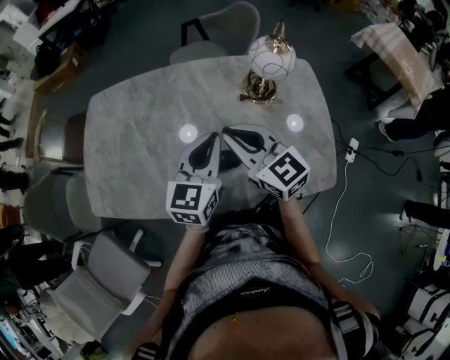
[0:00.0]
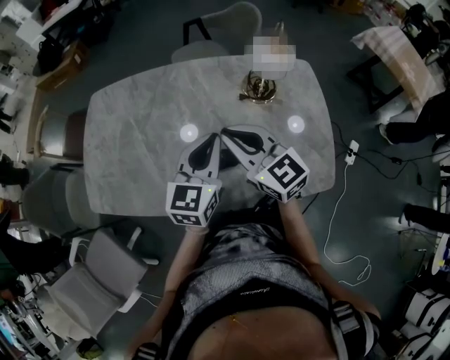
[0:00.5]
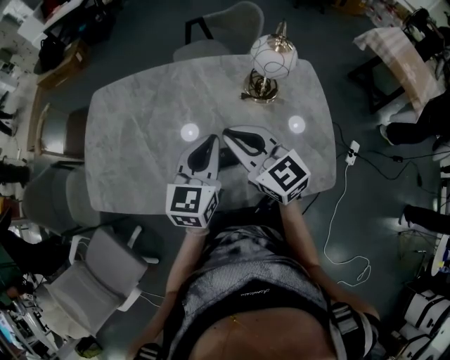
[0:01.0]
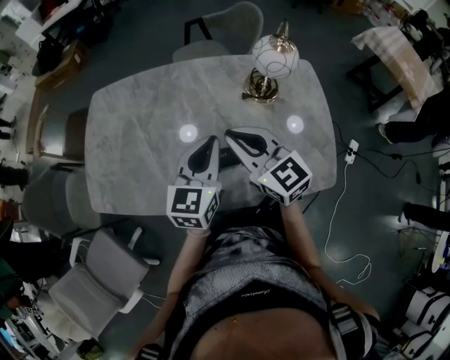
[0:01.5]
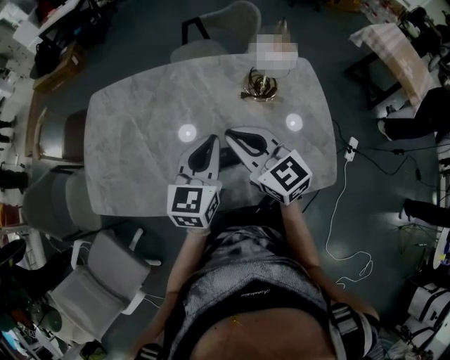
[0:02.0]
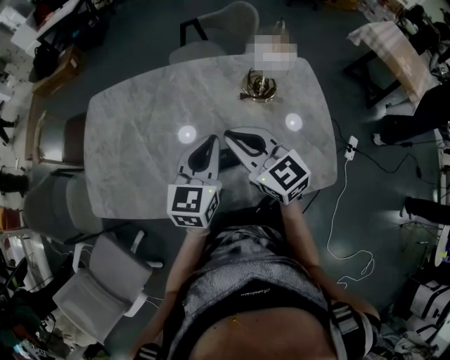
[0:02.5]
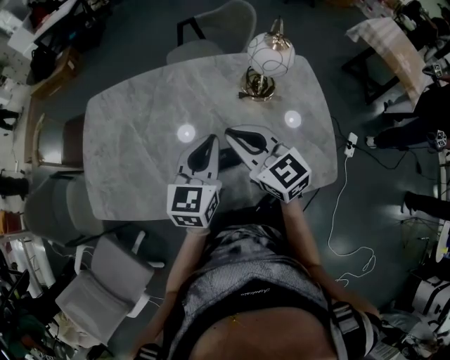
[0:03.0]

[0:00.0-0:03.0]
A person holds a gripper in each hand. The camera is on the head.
0:00.0 to 0:03.0: The grippers stay close to where they were, moving slightly.

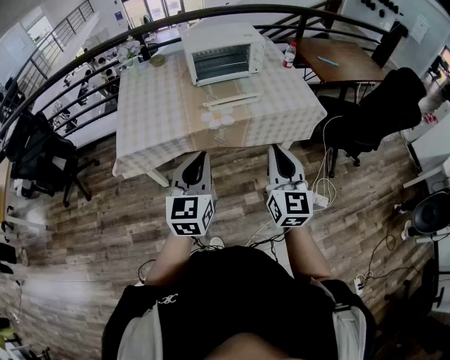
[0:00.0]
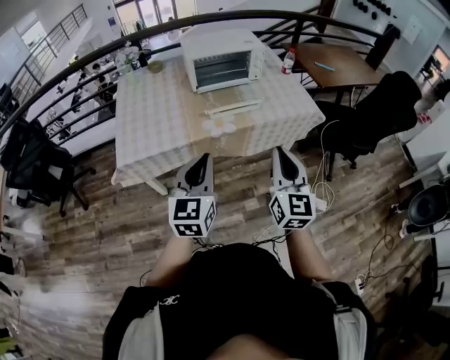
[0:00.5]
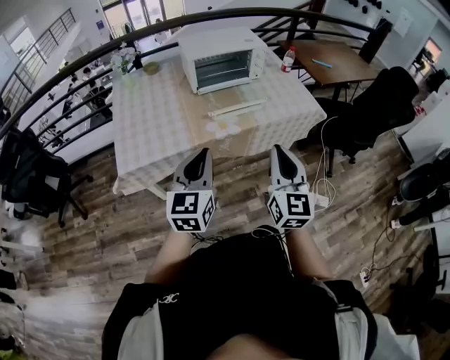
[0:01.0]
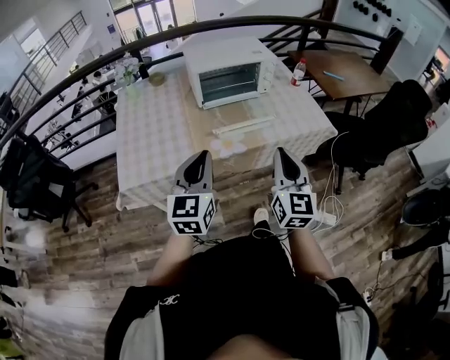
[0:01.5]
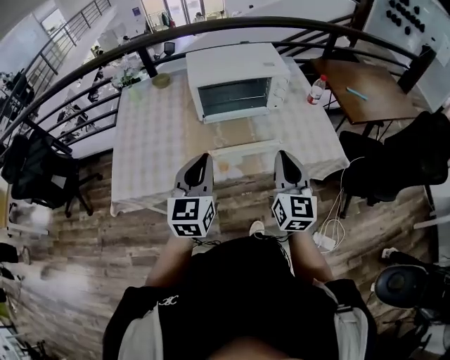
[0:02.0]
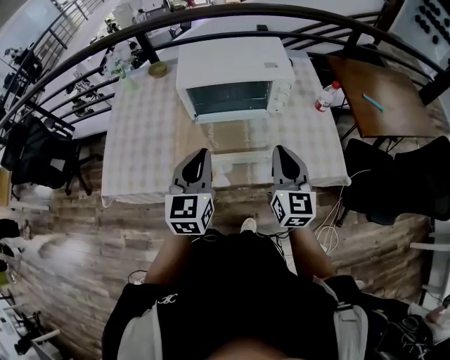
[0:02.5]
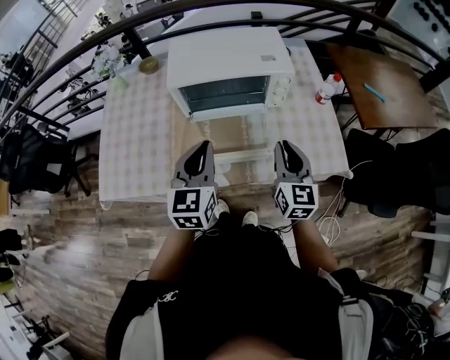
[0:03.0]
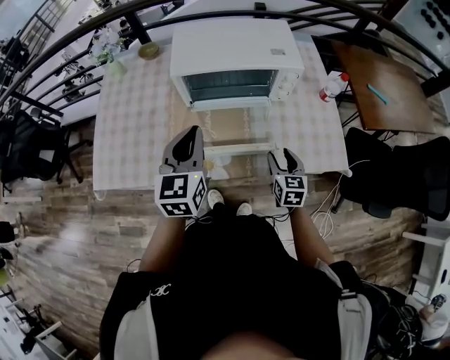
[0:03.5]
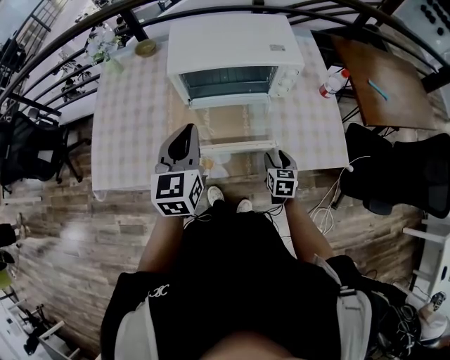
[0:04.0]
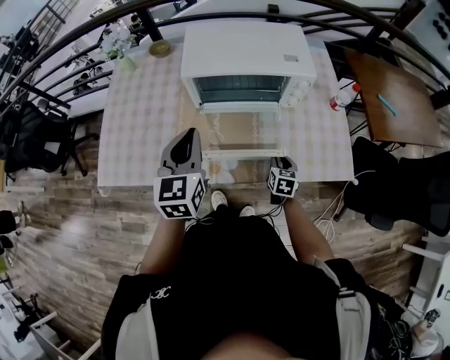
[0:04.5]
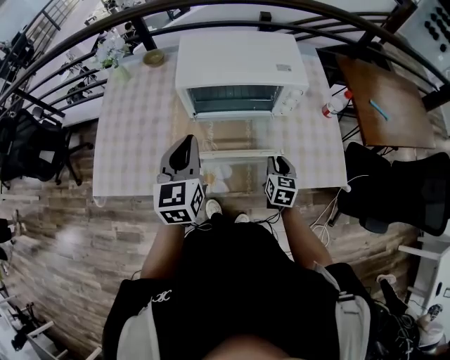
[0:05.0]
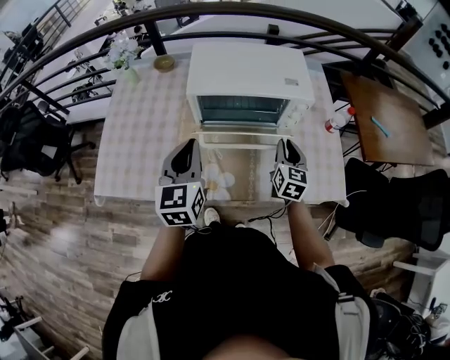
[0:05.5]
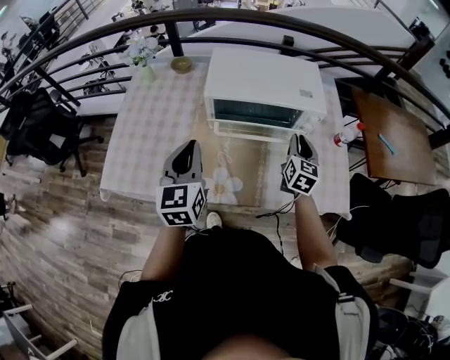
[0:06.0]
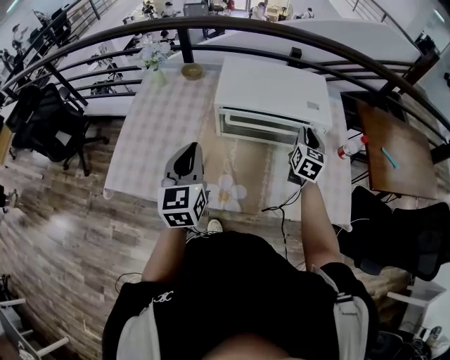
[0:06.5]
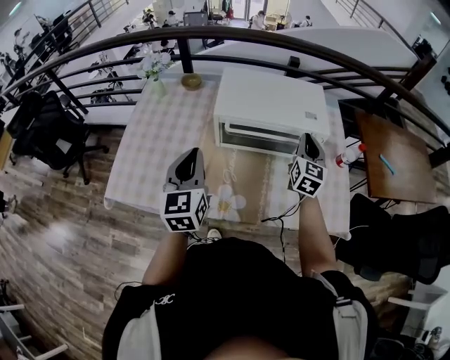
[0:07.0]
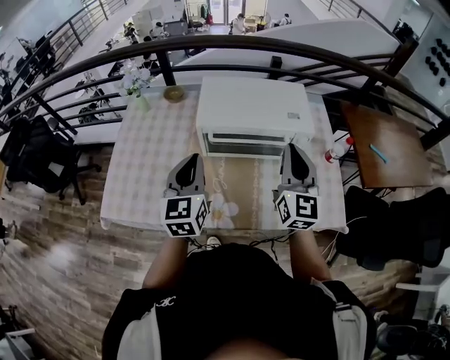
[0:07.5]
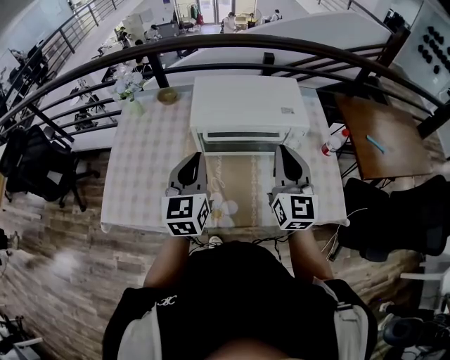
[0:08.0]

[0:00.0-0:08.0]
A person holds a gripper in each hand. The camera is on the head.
0:00.0 to 0:02.0: The grippers both shift forward by about 30 cm.
0:02.0 to 0:04.0: The right gripper heads downward and forward, covering roughly 35 cm, angles its fingers downward, by some 40 degrees, and opens; the left gripper shifts roughly 15 cm forward.
0:04.0 to 0:06.0: The left gripper is displaced to the left by some 5 cm; the right gripper goes some 25 cm upward and forward, changes its angle by roughly 20 degrees, and closes its fingers.
0:06.0 to 0:08.0: The right gripper travels upward and backward by about 20 cm, and swivels roughly 30 degrees. Meanwhile the left gripper moves approximately 5 cm.

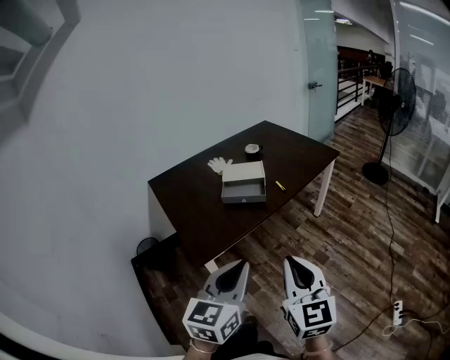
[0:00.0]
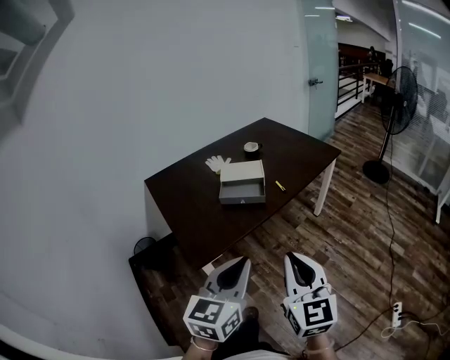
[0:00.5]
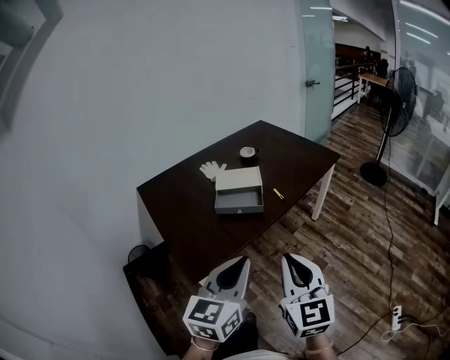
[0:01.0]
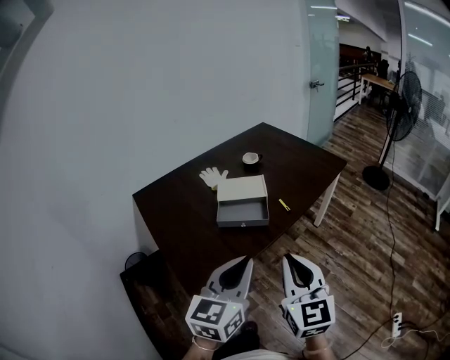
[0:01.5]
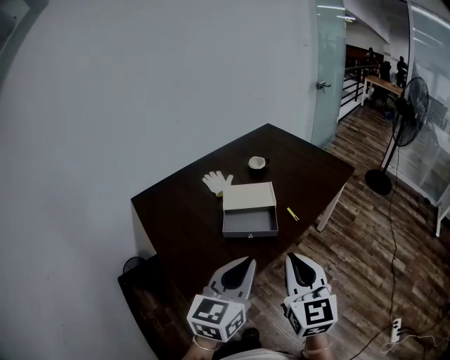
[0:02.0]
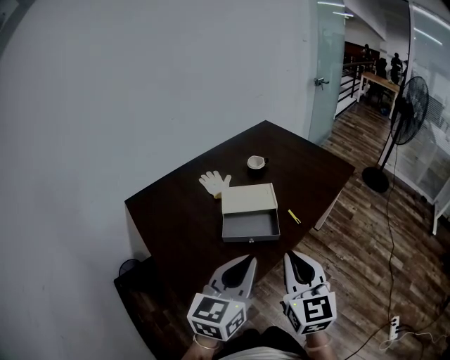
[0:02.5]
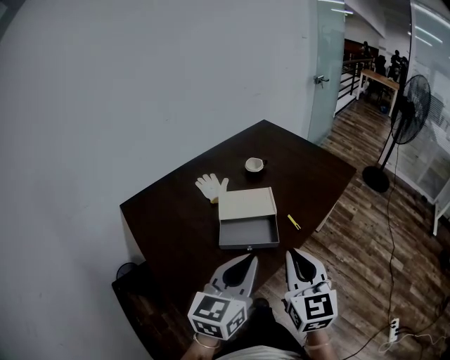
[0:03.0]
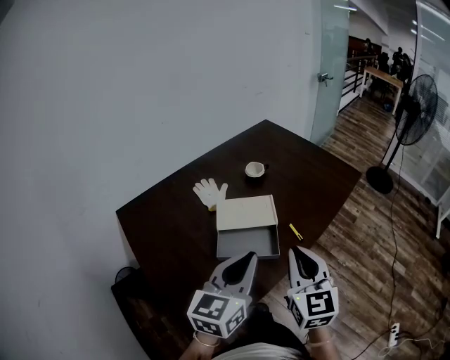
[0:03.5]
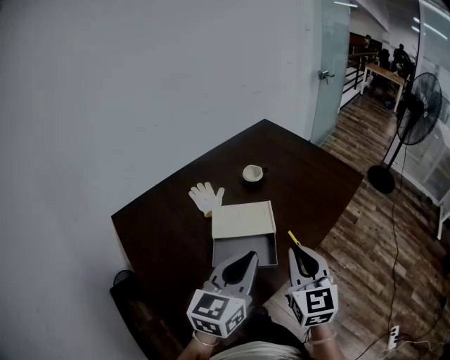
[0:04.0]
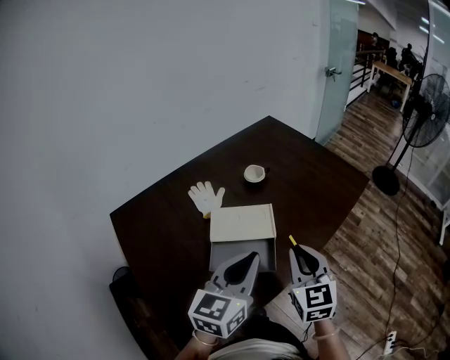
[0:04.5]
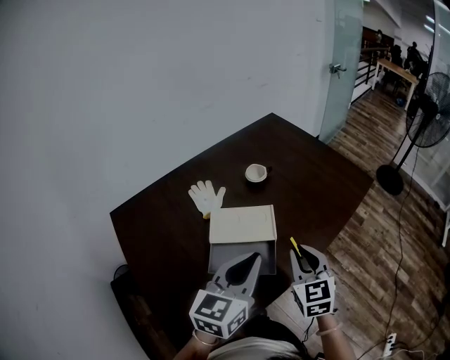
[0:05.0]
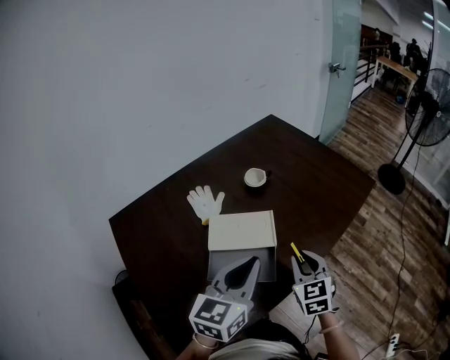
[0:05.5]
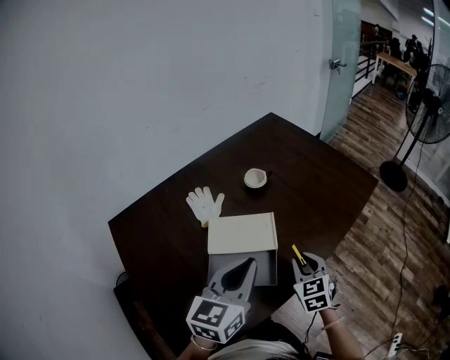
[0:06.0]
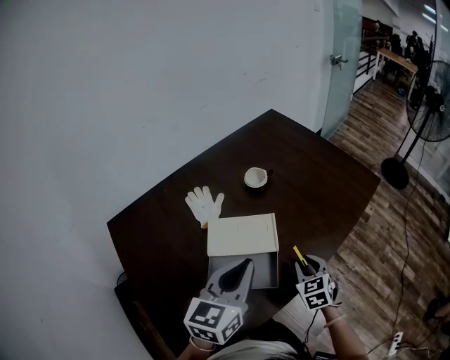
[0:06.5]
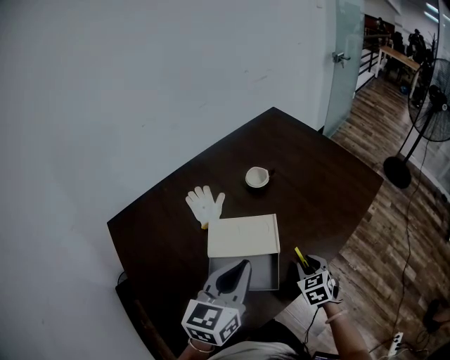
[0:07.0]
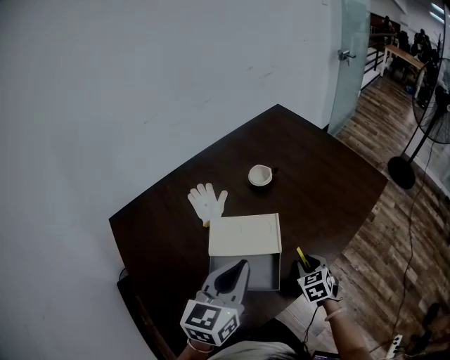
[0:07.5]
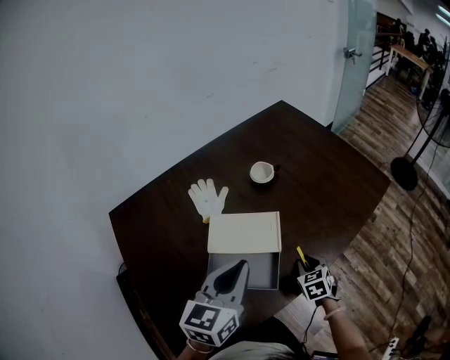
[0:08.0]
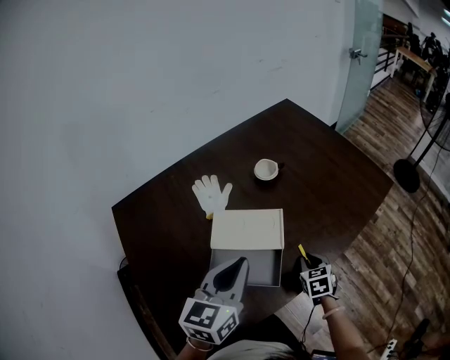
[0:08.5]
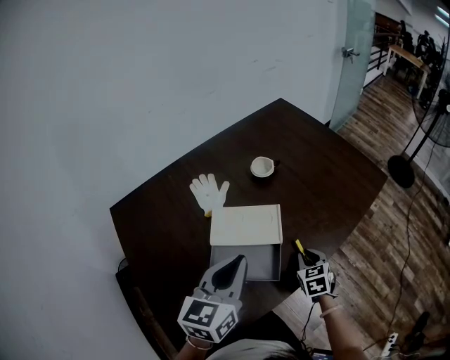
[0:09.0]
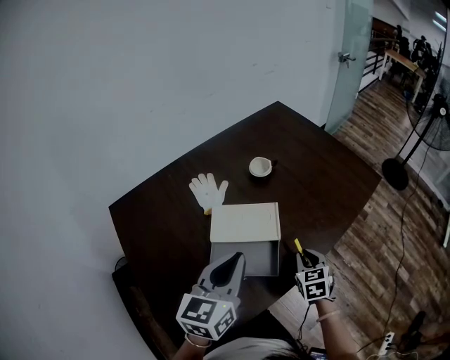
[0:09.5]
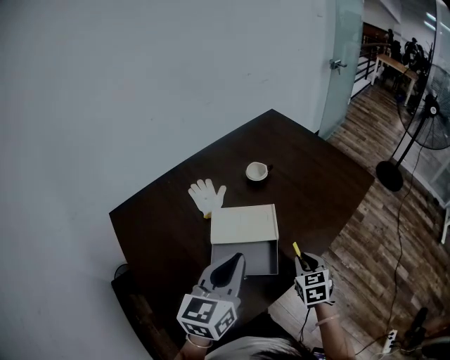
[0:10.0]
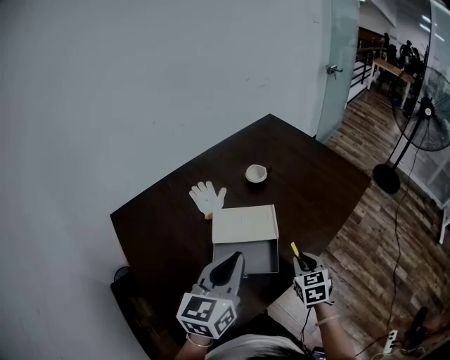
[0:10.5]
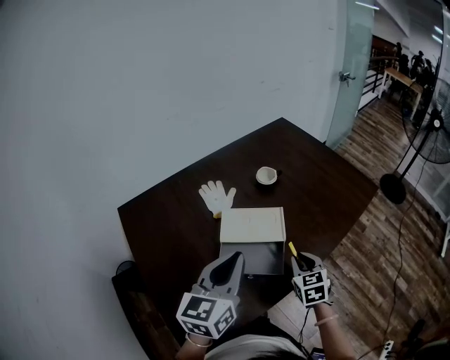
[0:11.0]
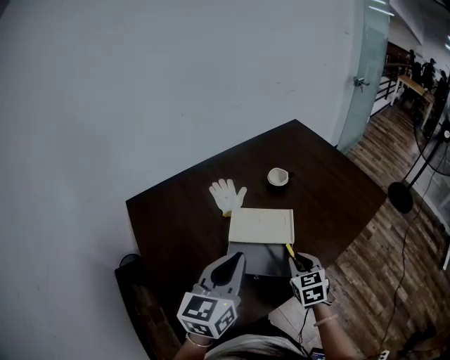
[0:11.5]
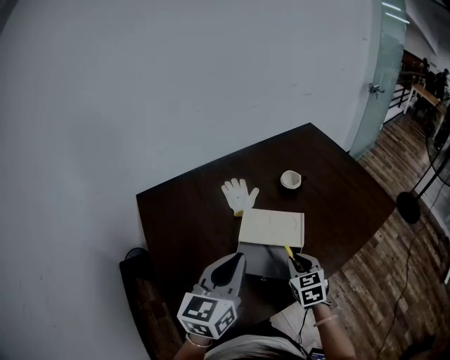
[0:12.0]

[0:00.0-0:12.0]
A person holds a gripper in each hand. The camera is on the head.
0:00.0 to 0:02.0: Both grippers move forward, approximately 30 cm.
0:02.0 to 0:04.0: Both grippers move forward, roughly 25 cm.
0:04.0 to 0:06.0: The left gripper travels forward by approximately 10 cm. The right gripper goes about 20 cm downward and forward, and swivels roughly 20 degrees.
0:06.0 to 0:08.0: The right gripper is displaced downward by some 10 cm.
0:08.0 to 0:10.0: The right gripper heads upward and backward, covering approximately 10 cm. Meanwhile the left gripper moves backward, about 5 cm.
0:10.0 to 0:12.0: Both grippers travel together to the left, some 10 cm.

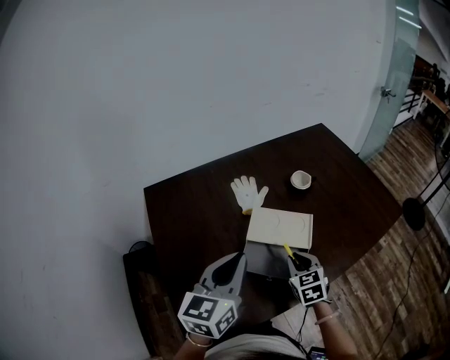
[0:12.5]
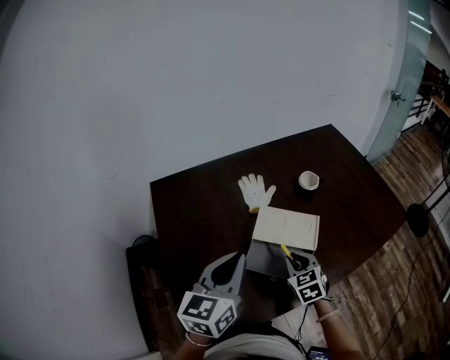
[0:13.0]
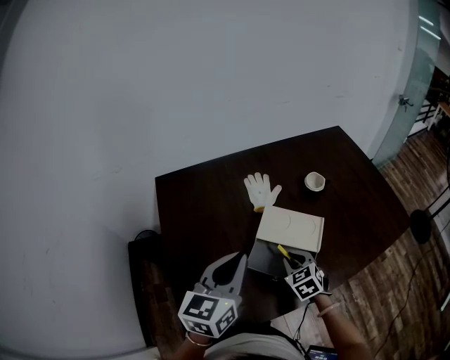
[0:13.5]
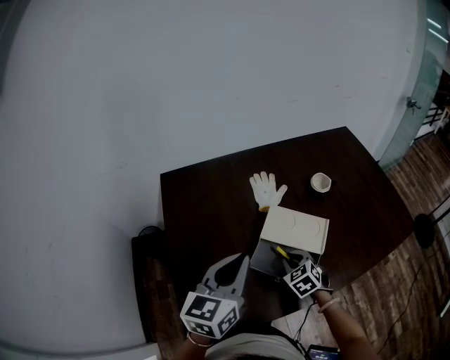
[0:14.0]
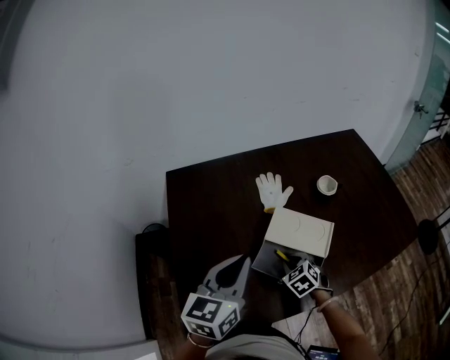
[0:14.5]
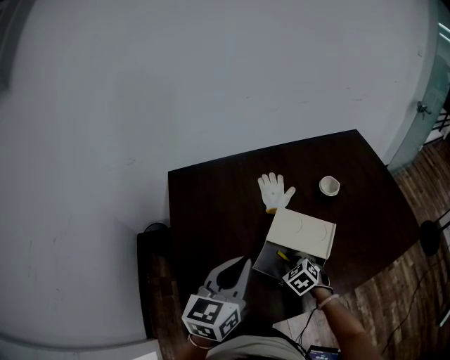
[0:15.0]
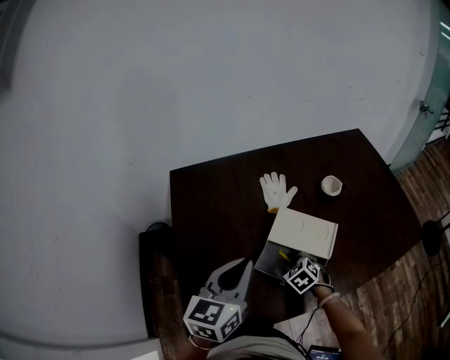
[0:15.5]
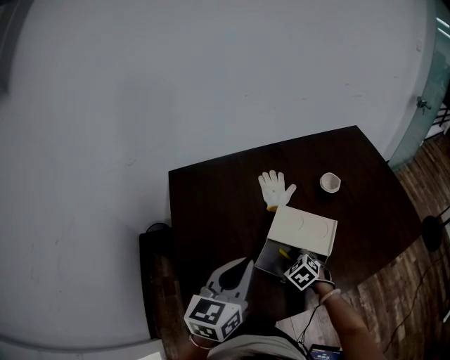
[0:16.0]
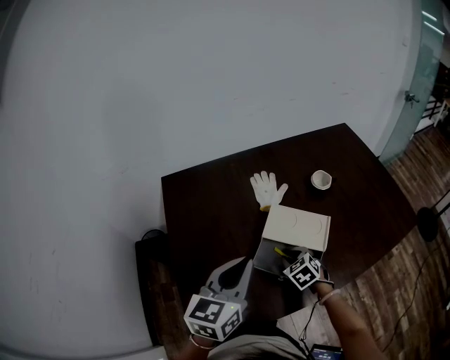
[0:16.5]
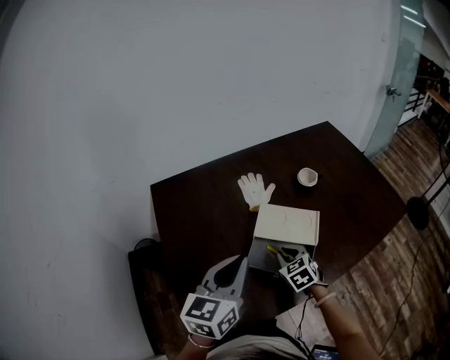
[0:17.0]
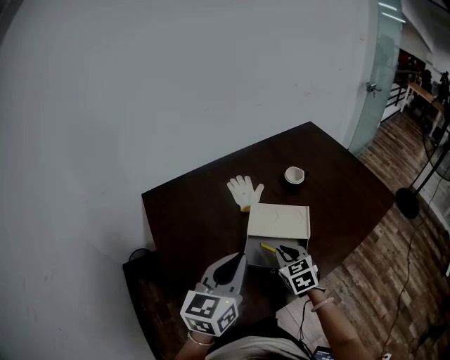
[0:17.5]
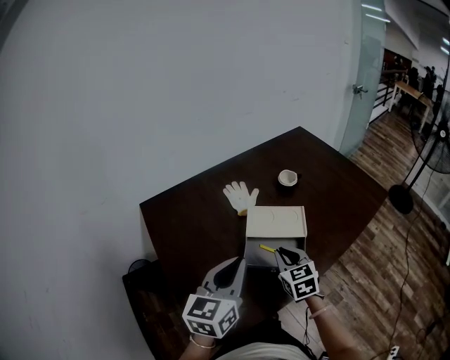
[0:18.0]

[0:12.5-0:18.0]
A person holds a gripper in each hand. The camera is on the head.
0:12.5 to 0:14.5: The right gripper goes some 10 cm downward and to the left, and turns by approximately 30 degrees.
0:14.5 to 0:16.0: The grippers move only a little.
0:16.0 to 0:18.0: The left gripper goes approximately 5 cm backward. The right gripper heads upward and backward, covering some 15 cm, and tilts its fingers roughly 30 degrees upward.
